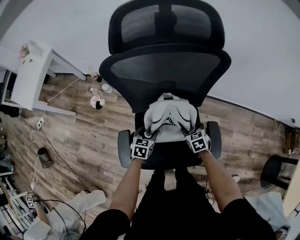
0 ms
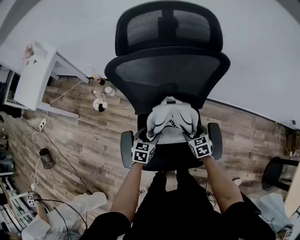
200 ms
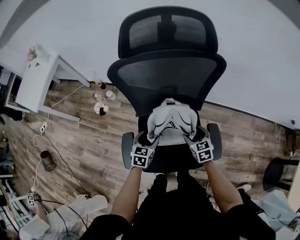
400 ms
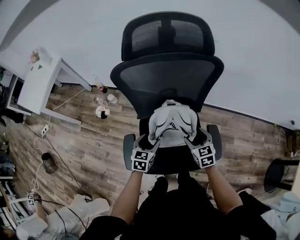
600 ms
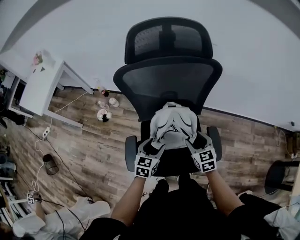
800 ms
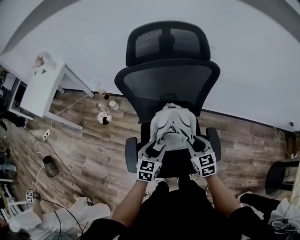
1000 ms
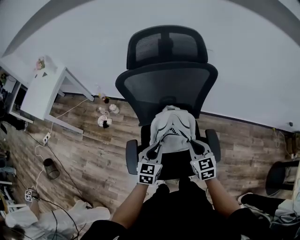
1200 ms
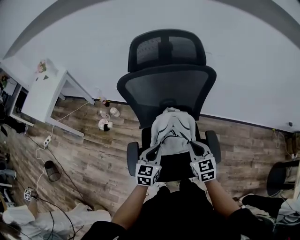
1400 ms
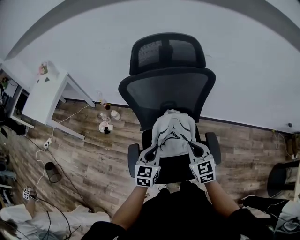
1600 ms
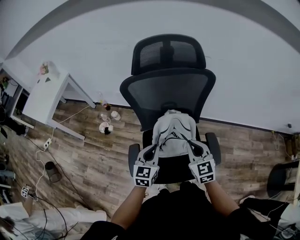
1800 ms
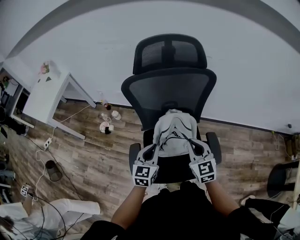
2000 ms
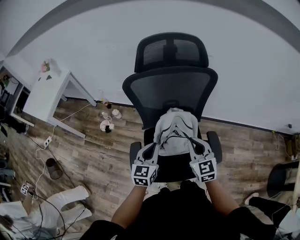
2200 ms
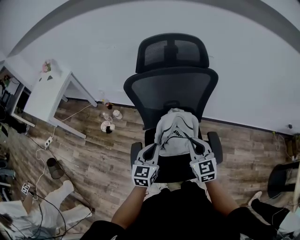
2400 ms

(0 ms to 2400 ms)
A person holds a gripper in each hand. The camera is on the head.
0 ms - 1200 ms: Both grippers move upward, roughly 20 cm. The right gripper changes its angle by roughly 20 degrees, and closes its fingers, while the left gripper closes its fingers.
1200 ms - 2400 ms: The grippers both shift upward by some 5 cm.

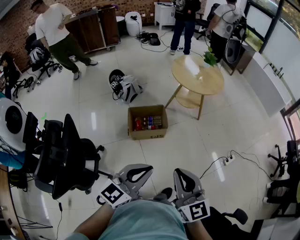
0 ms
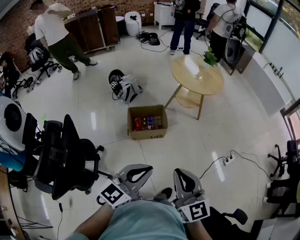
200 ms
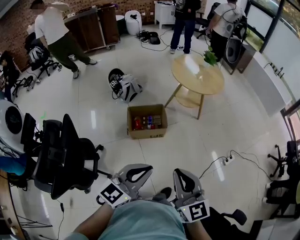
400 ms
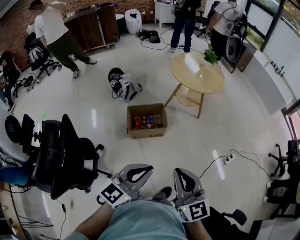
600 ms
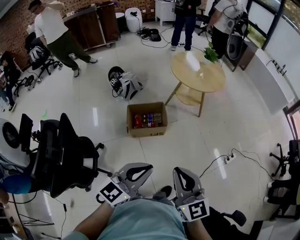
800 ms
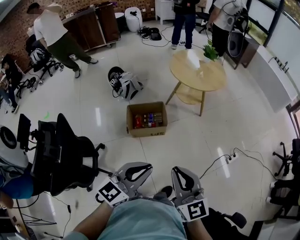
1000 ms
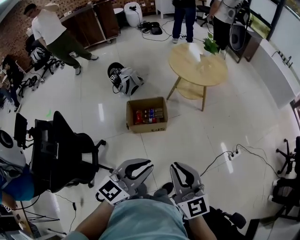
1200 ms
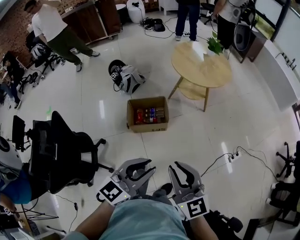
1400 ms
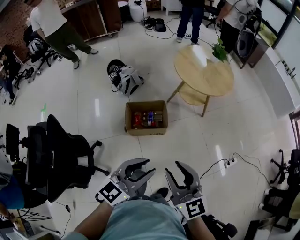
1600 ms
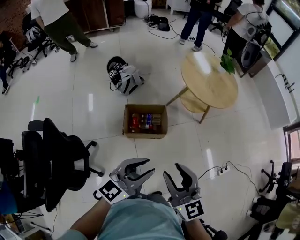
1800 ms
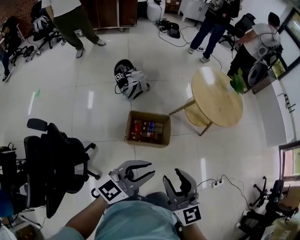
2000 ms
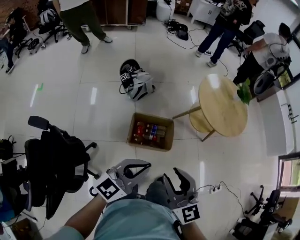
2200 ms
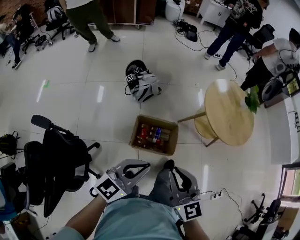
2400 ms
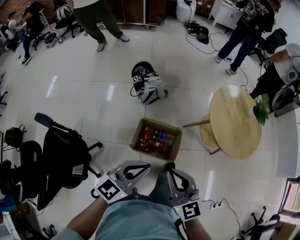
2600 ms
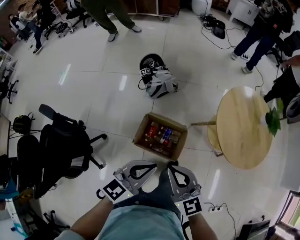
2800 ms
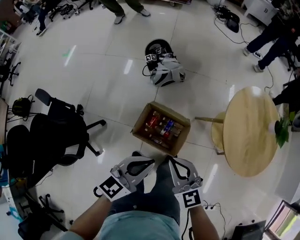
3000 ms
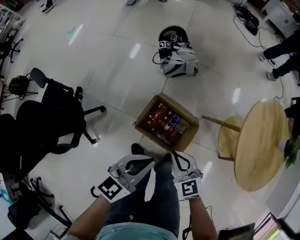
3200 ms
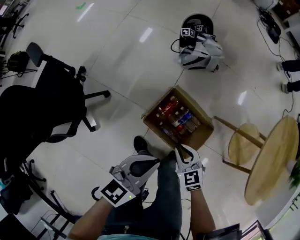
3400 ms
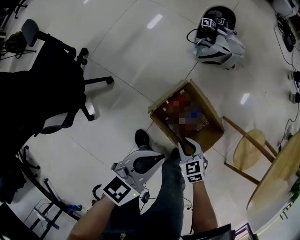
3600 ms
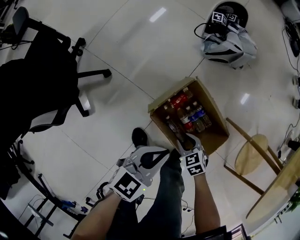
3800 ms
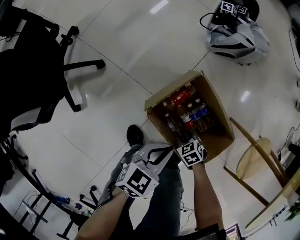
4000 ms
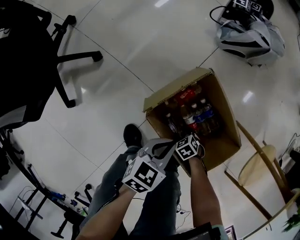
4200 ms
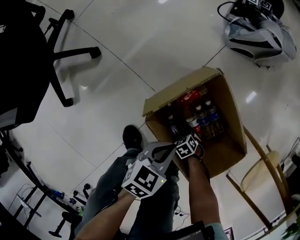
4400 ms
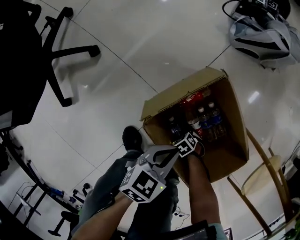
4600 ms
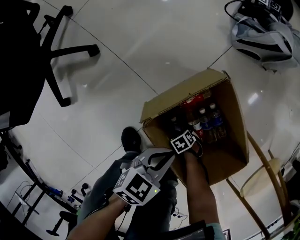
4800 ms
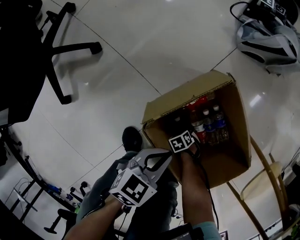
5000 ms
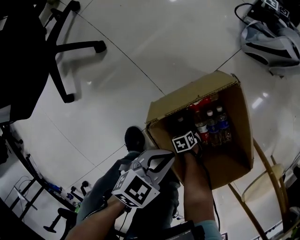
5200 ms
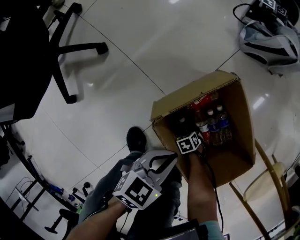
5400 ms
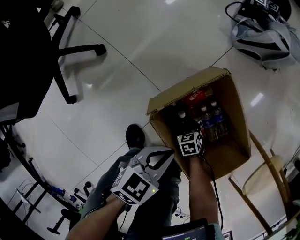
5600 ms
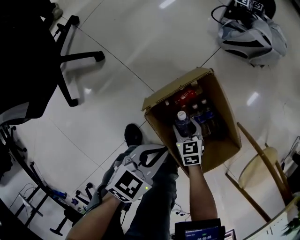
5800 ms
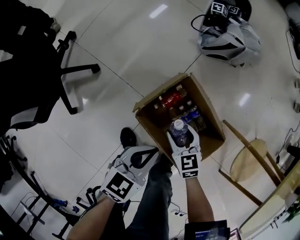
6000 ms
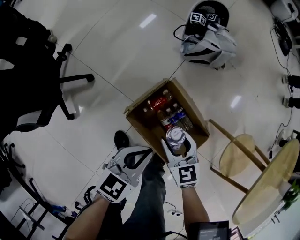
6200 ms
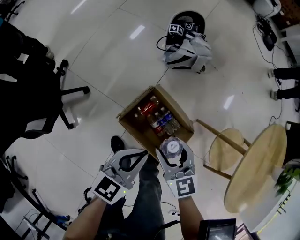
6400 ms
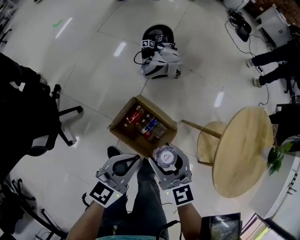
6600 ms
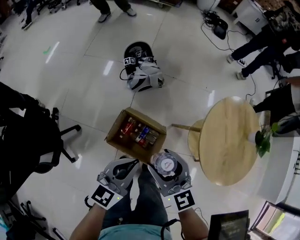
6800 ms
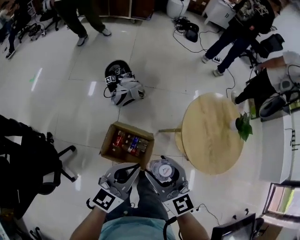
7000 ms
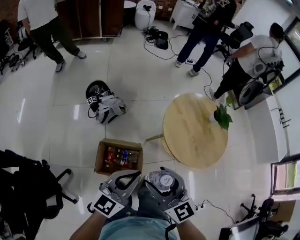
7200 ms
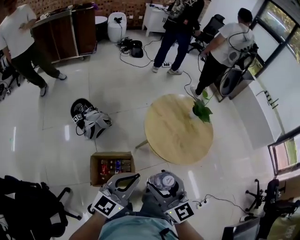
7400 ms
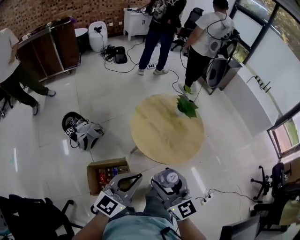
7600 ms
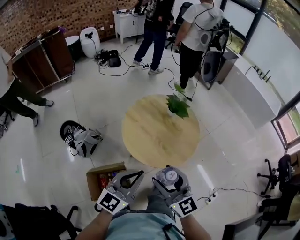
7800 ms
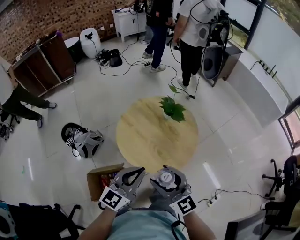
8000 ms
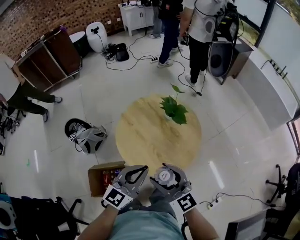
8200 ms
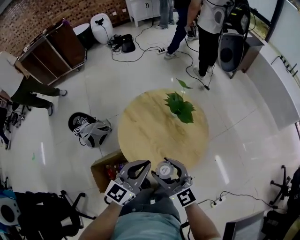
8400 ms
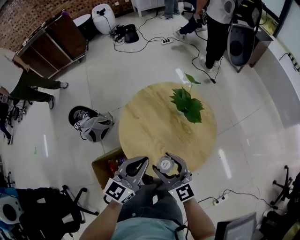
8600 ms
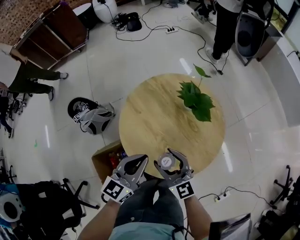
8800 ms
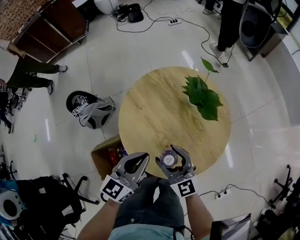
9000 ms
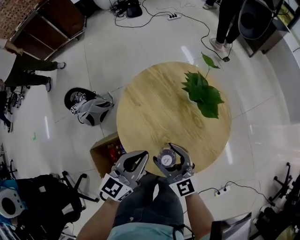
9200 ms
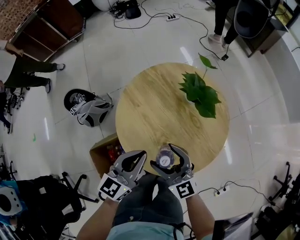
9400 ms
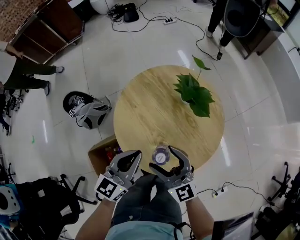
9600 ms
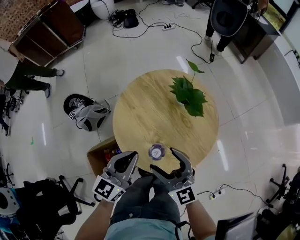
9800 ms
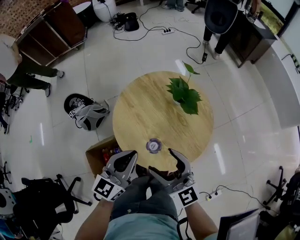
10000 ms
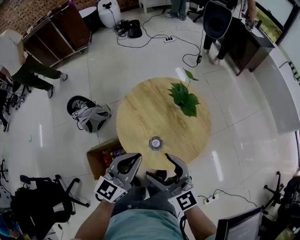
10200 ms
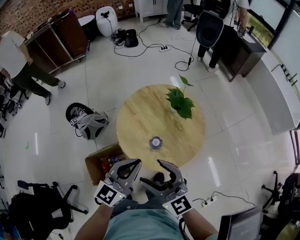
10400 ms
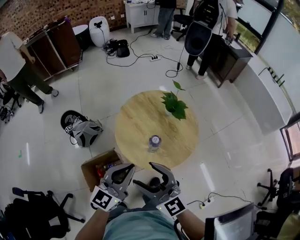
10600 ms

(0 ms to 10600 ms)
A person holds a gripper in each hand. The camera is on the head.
0 ms - 1600 ms: The grippers both shift forward by some 15 cm. The left gripper opens its fingers.
1600 ms - 3000 ms: The right gripper changes place by roughly 40 cm, and swivels some 40 degrees; the left gripper ends up some 40 cm from where it was, rotates approximately 30 degrees, and closes its fingers.
3000 ms - 4600 ms: Both grippers travel together downward, roughly 70 cm. The right gripper angles its fingers downward, by roughly 50 degrees, and opens its fingers. Meanwhile the left gripper swivels some 40 degrees.
4600 ms - 6000 ms: The left gripper heads upward, covering about 15 cm. Meanwhile the right gripper moves upward, about 35 cm, and turns by approximately 50 degrees.
6000 ms - 7600 ms: The grippers both shift upward by some 60 cm. The left gripper tips its fingers upward by about 30 degrees. Meanwhile the right gripper tilts its fingers approximately 40 degrees upward.
7600 ms - 9000 ms: Both grippers move forward, downward and to the right, roughly 35 cm. The left gripper rotates roughly 20 degrees.
9000 ms - 10600 ms: Both grippers travel together upward and backward, about 25 cm.

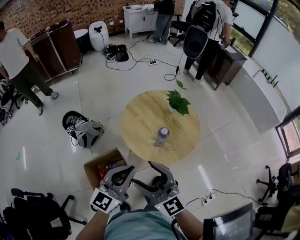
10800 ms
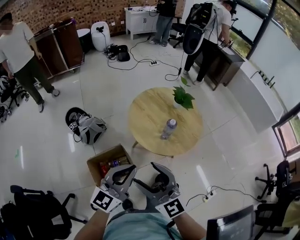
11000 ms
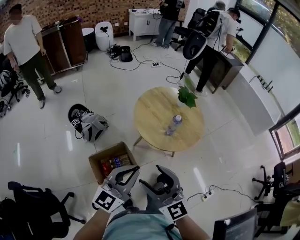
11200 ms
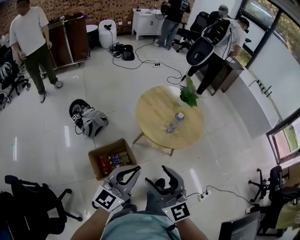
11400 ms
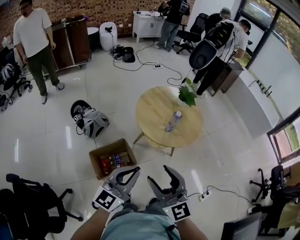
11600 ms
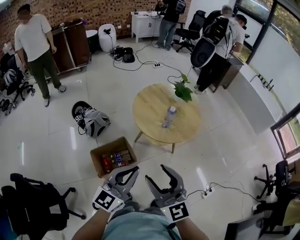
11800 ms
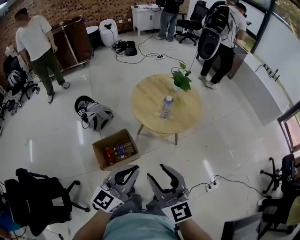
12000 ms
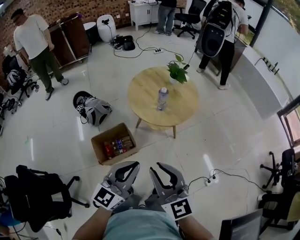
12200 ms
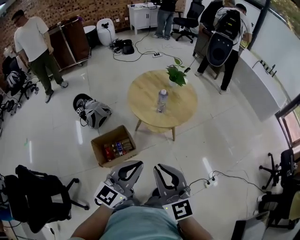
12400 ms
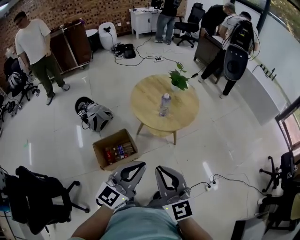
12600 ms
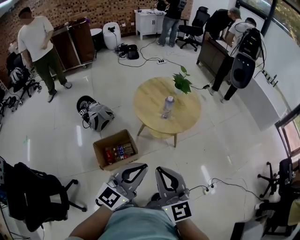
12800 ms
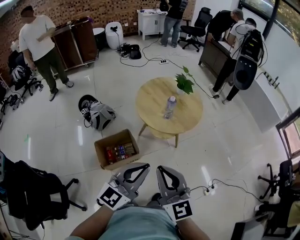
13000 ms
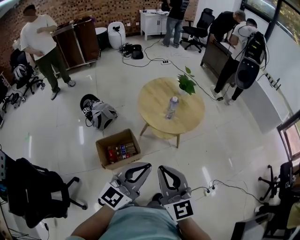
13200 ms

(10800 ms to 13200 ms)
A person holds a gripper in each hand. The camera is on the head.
10800 ms - 12000 ms: Both grippers travel together backward, roughly 20 cm. The right gripper closes.
12000 ms - 13200 ms: The right gripper closes up. The left gripper shifts by about 5 cm.

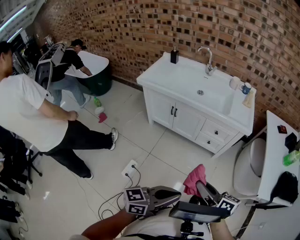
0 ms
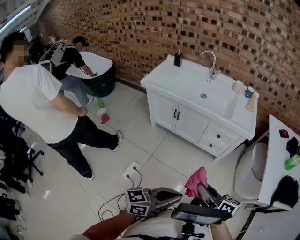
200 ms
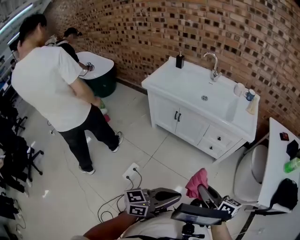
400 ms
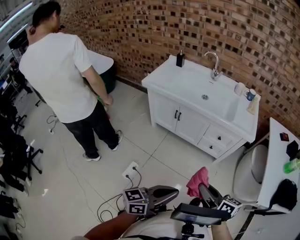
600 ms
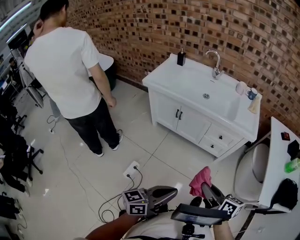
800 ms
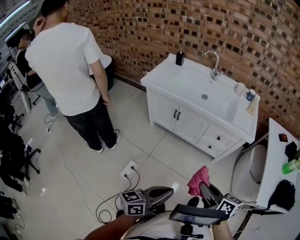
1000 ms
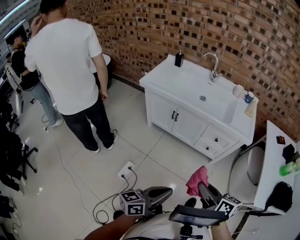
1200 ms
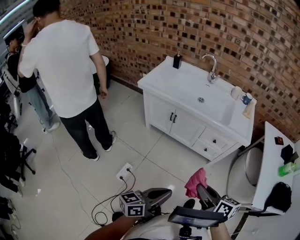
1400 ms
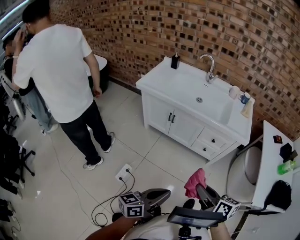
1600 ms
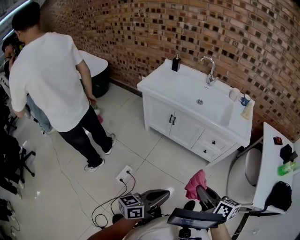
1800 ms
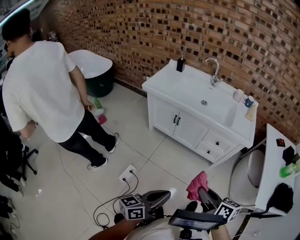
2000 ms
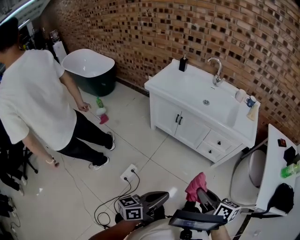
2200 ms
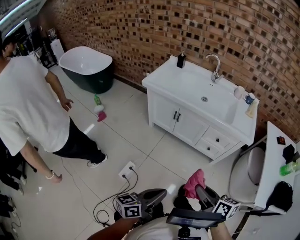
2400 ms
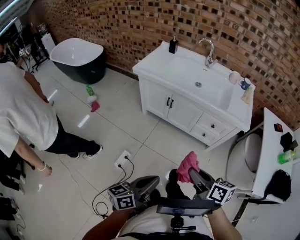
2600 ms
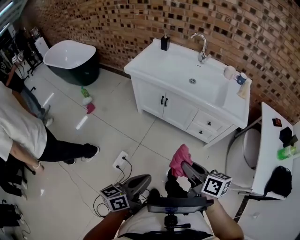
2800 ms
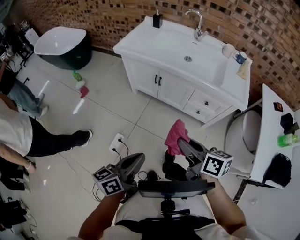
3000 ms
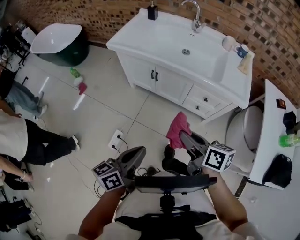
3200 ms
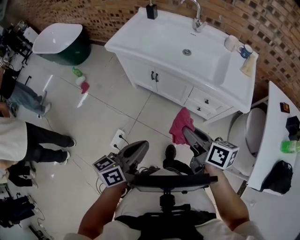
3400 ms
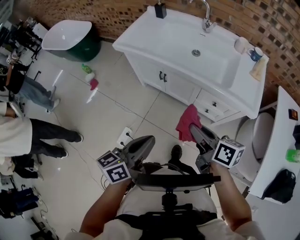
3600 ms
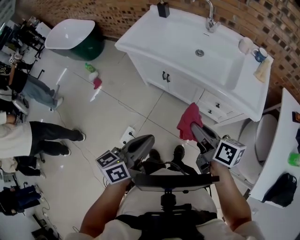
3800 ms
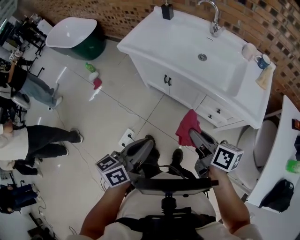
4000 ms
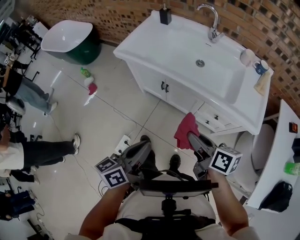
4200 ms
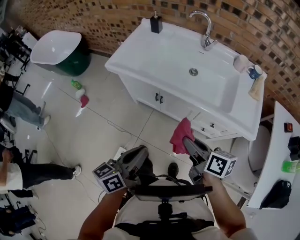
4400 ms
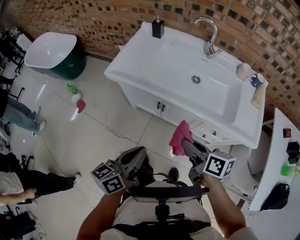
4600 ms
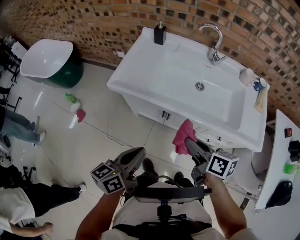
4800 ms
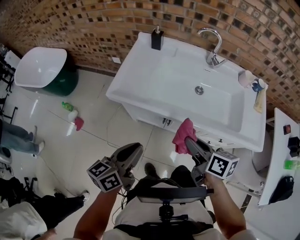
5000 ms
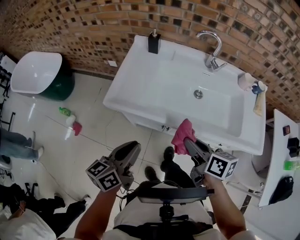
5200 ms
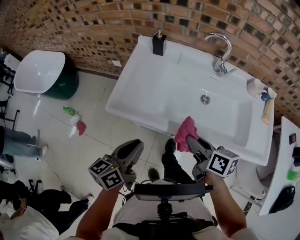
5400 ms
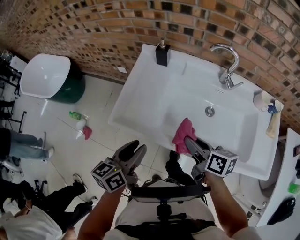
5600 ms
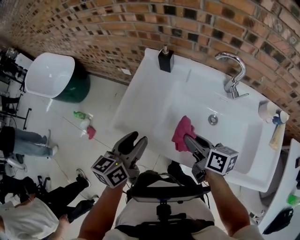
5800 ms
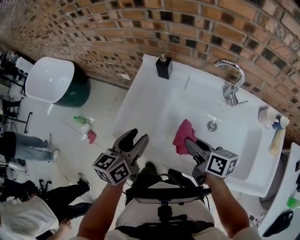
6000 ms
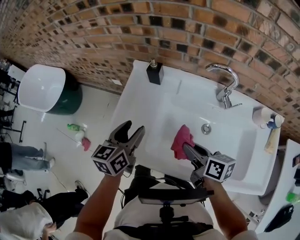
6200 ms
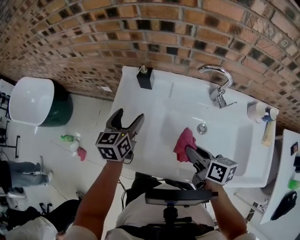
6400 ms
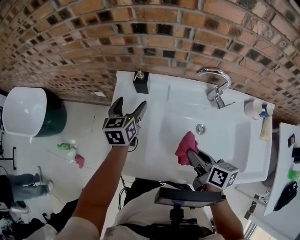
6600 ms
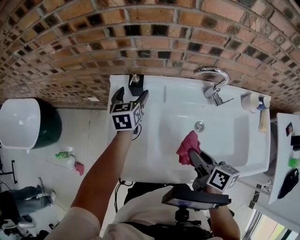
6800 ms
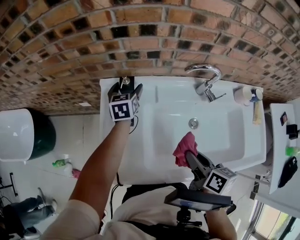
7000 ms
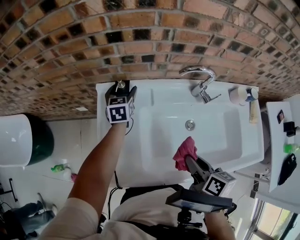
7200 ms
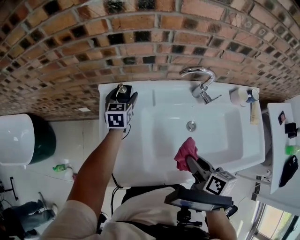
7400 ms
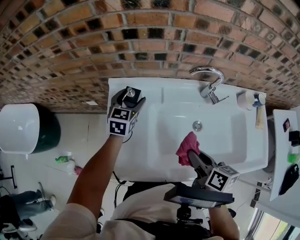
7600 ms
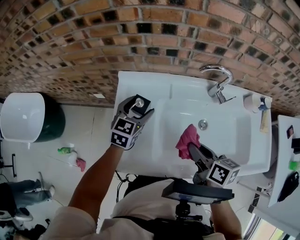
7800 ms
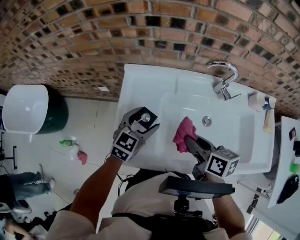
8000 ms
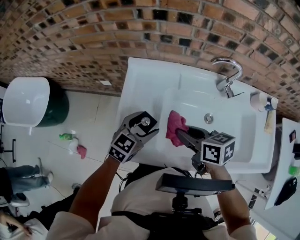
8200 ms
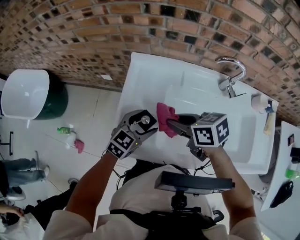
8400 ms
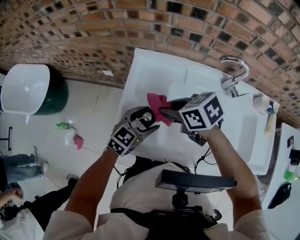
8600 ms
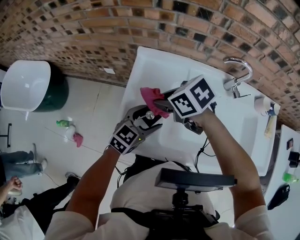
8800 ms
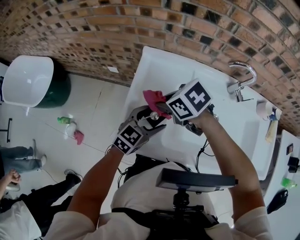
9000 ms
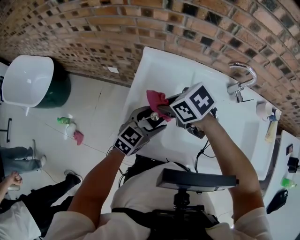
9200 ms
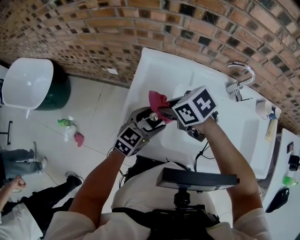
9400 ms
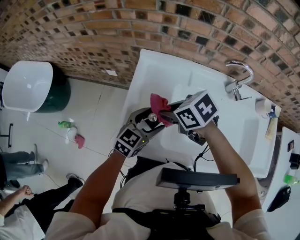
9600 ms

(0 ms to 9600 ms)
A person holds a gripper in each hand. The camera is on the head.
0 ms - 1600 ms: The left gripper travels to the left by roughly 5 cm.
1600 ms - 3200 ms: Both grippers move forward, about 15 cm.
3200 ms - 4800 ms: The grippers both shift forward by some 35 cm.
4800 ms - 6400 ms: The right gripper shifts about 40 cm forward; the left gripper shifts approximately 60 cm forward, changes its angle by approximately 30 degrees, and opens up.
6400 ms - 8000 ms: The right gripper moves to the left, about 10 cm. The left gripper travels forward and back again, roughly 20 cm each way, and turns by approximately 40 degrees.
8000 ms - 9600 ms: The left gripper ends up some 5 cm from where it was. Meanwhile the right gripper ends up some 20 cm from where it was, and swivels approximately 50 degrees.
